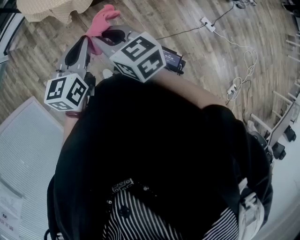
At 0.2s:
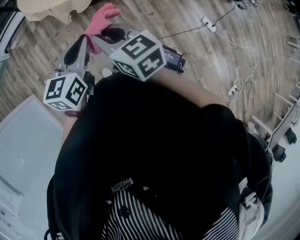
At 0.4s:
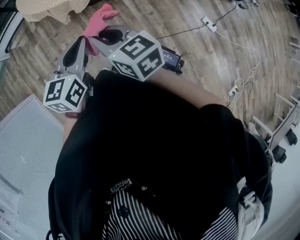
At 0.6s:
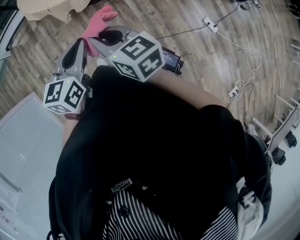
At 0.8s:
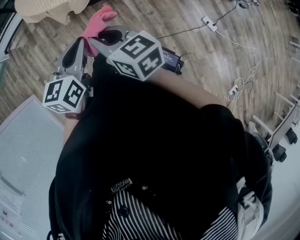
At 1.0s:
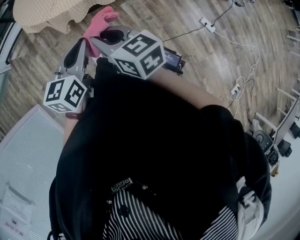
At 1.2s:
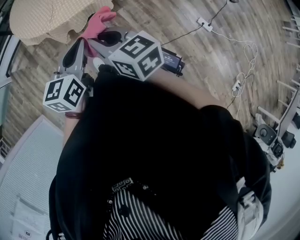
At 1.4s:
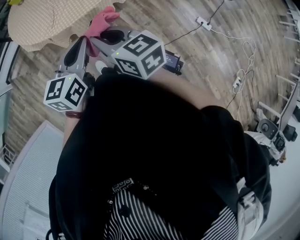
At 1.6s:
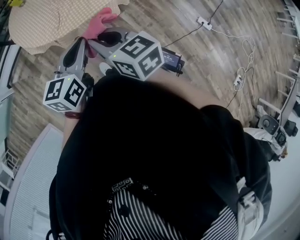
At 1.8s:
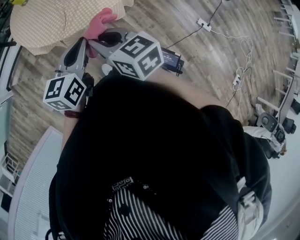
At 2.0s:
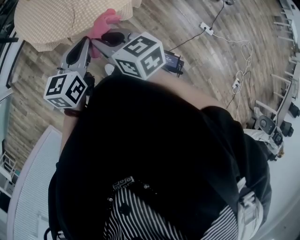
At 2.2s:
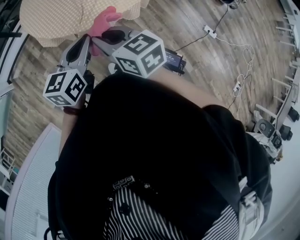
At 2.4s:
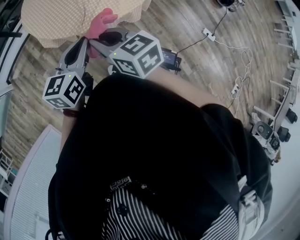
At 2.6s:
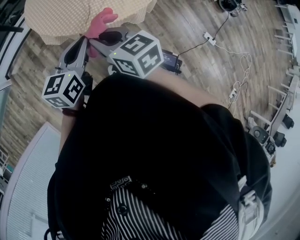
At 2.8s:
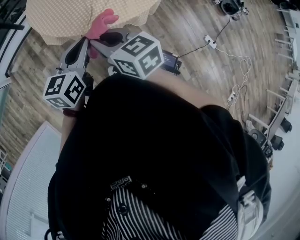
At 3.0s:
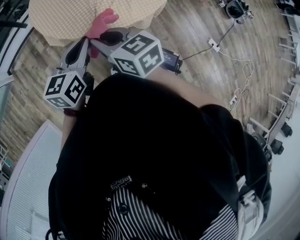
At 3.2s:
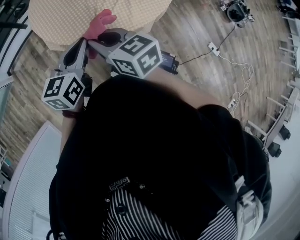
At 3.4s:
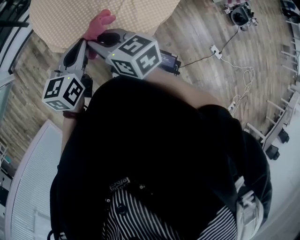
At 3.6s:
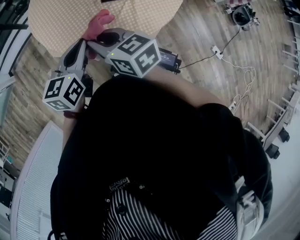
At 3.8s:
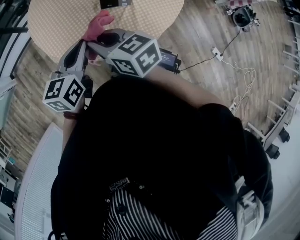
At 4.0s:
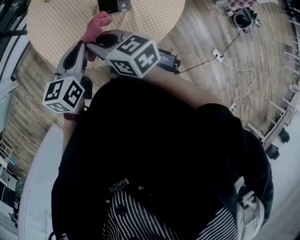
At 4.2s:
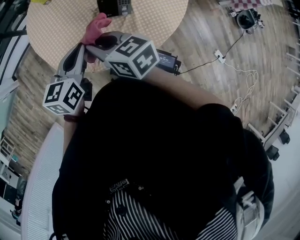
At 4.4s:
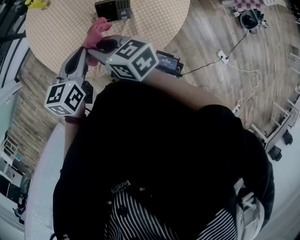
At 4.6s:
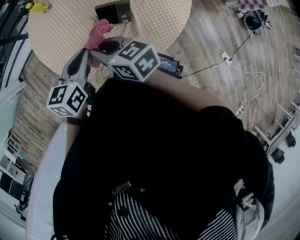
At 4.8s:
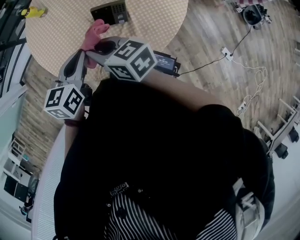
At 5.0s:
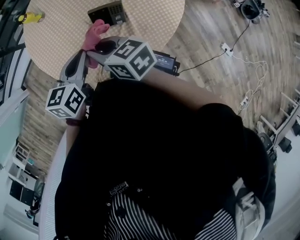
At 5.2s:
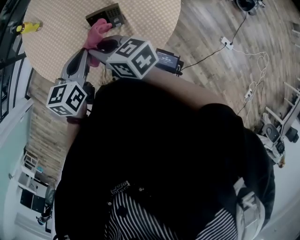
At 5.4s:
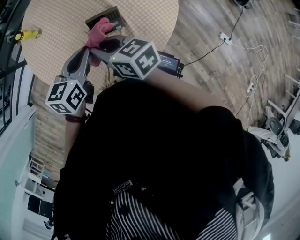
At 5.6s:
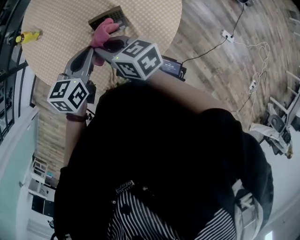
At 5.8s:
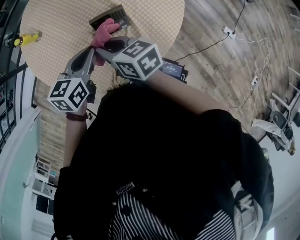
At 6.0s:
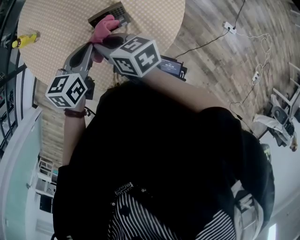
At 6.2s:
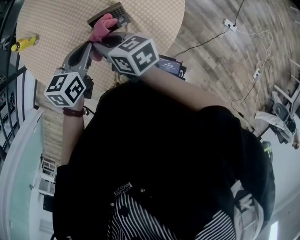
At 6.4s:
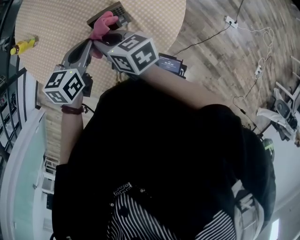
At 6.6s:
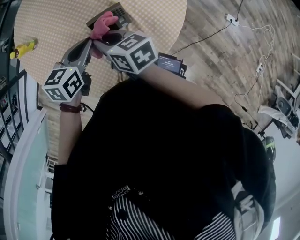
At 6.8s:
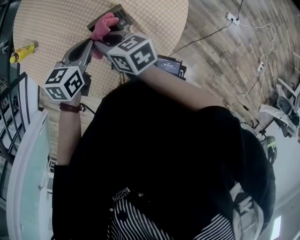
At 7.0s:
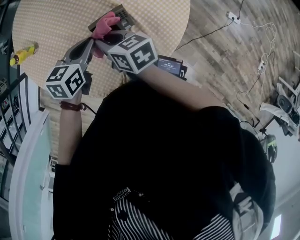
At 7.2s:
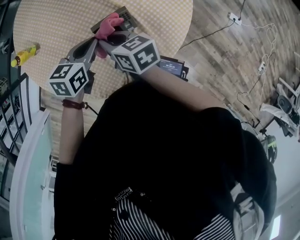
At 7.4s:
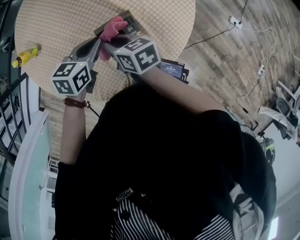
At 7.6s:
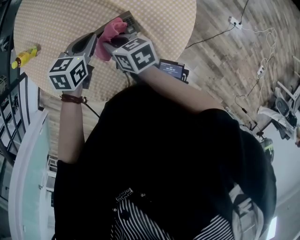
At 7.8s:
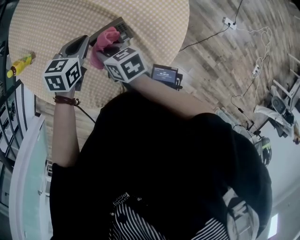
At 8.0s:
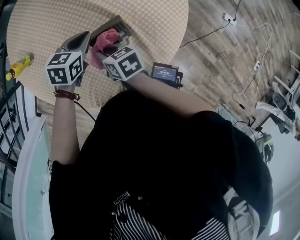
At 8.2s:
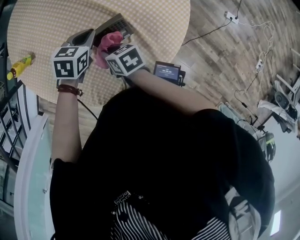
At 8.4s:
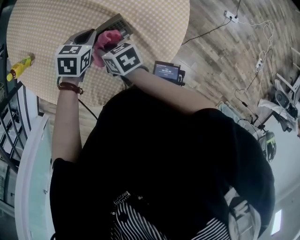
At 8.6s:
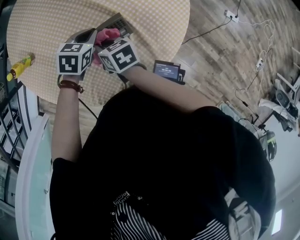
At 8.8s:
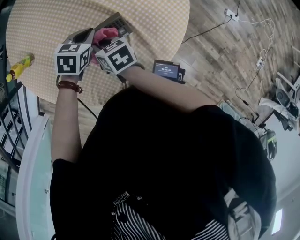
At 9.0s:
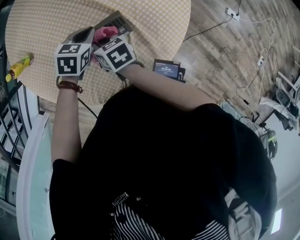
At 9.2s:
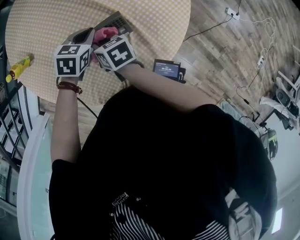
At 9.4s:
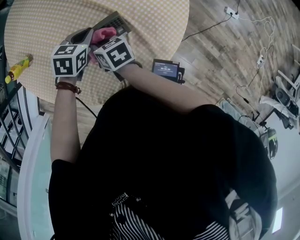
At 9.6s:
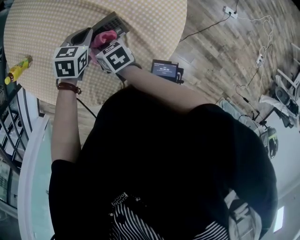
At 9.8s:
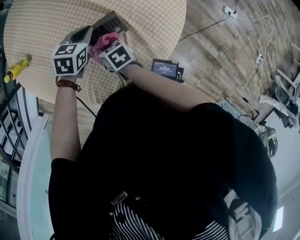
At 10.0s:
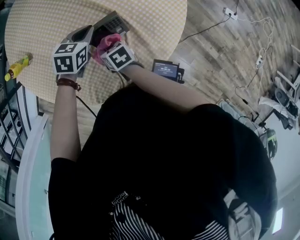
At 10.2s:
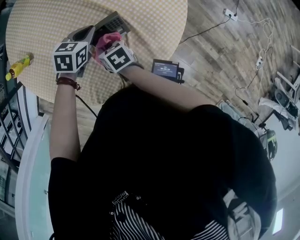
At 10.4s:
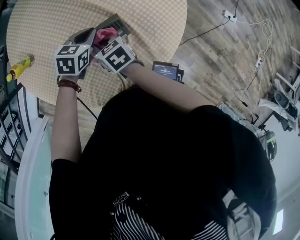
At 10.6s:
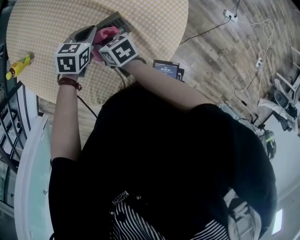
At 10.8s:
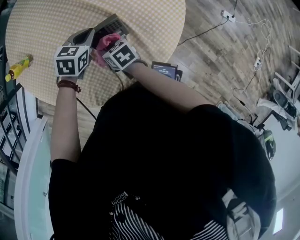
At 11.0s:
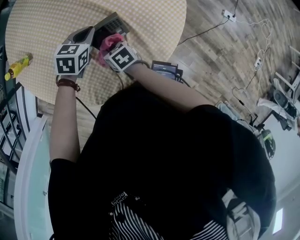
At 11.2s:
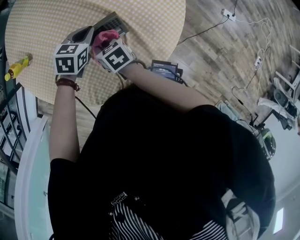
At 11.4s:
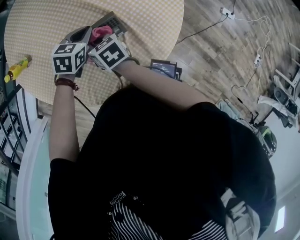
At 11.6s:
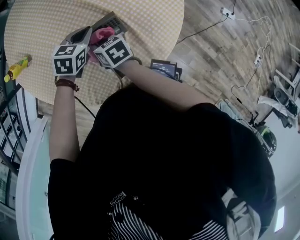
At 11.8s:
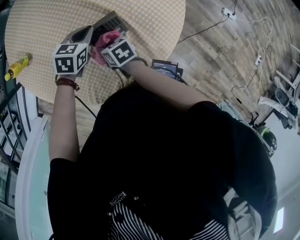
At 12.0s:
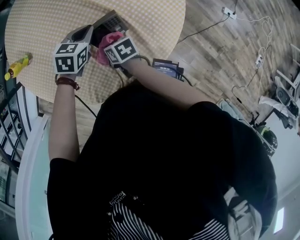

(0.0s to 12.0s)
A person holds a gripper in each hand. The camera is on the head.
0.0s - 1.6s: The two grippers go approximately 20 cm forward.
1.6s - 3.0s: The grippers both shift to the left and forward by about 20 cm.
3.0s - 4.4s: The two grippers go about 25 cm forward.
4.4s - 6.0s: The grippers both shift forward and to the right by roughly 10 cm. The left gripper changes its angle by roughly 30 degrees; the right gripper turns by roughly 30 degrees.
6.0s - 7.6s: The right gripper travels downward by about 10 cm; the left gripper heads forward and downward, covering some 10 cm.
7.6s - 9.0s: The left gripper heads downward, covering some 5 cm.
9.0s - 10.4s: The right gripper goes downward and returns, about 10 cm each way.
10.4s - 12.0s: The right gripper moves up and down over approximately 5 cm, changing direction 2 times.

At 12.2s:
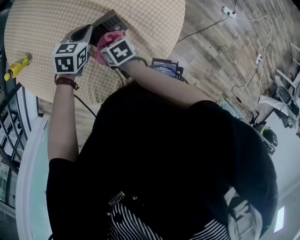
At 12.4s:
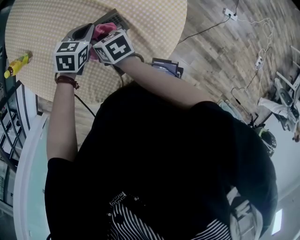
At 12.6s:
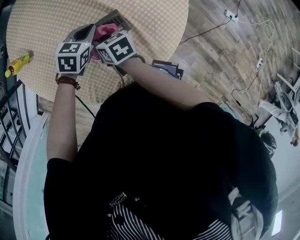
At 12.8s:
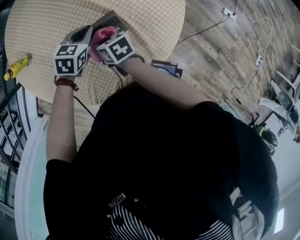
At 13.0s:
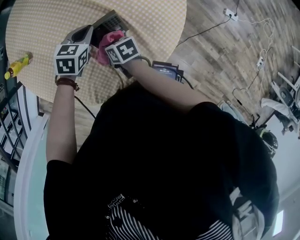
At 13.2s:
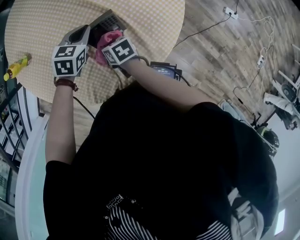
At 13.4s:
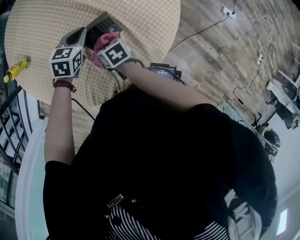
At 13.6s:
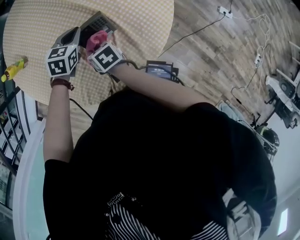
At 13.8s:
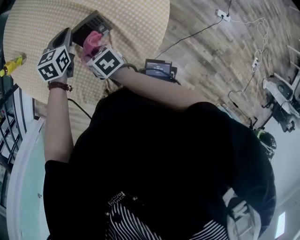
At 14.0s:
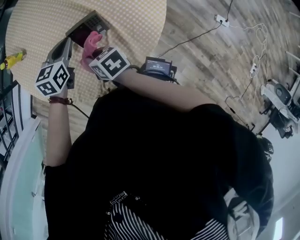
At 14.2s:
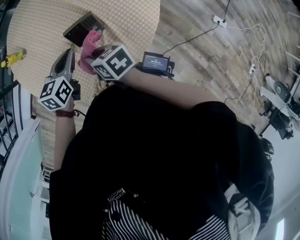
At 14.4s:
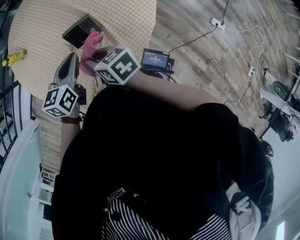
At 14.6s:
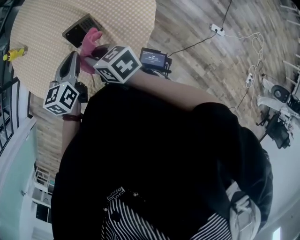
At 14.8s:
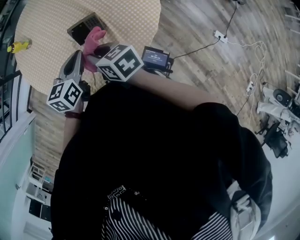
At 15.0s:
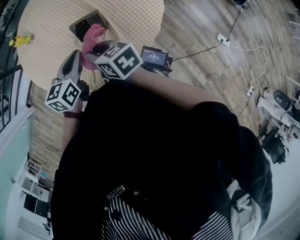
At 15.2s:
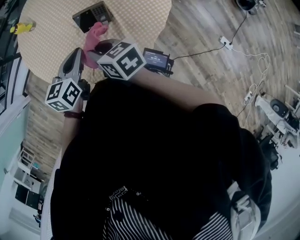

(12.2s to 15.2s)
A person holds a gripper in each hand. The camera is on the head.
12.2s - 13.8s: The right gripper goes approximately 5 cm upward.
13.8s - 15.2s: The right gripper is displaced upward and backward by about 15 cm, and changes its angle by roughly 20 degrees; the left gripper shifts some 20 cm backward and upward, and changes its angle by some 30 degrees.

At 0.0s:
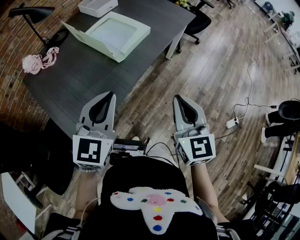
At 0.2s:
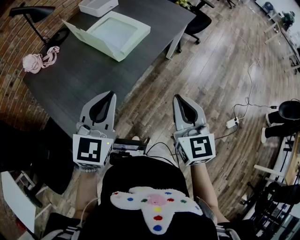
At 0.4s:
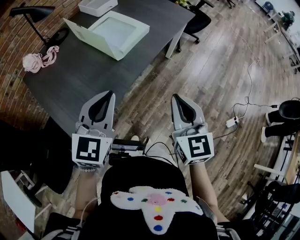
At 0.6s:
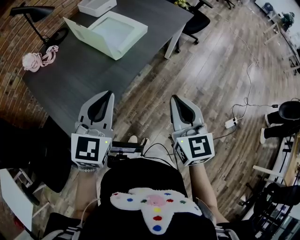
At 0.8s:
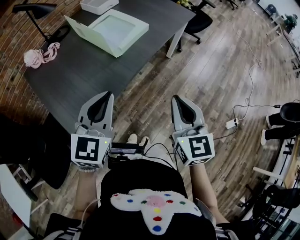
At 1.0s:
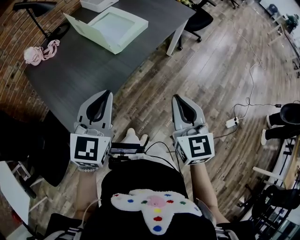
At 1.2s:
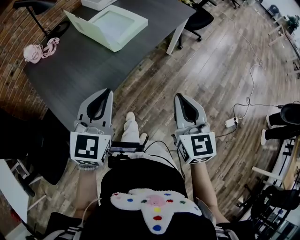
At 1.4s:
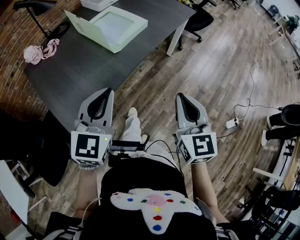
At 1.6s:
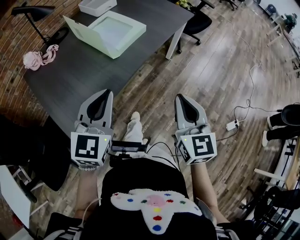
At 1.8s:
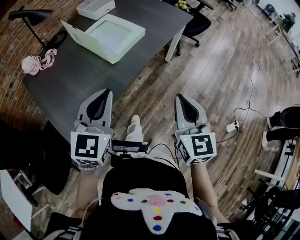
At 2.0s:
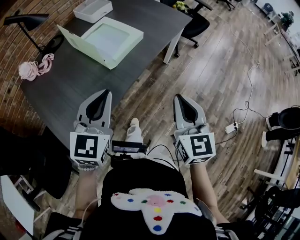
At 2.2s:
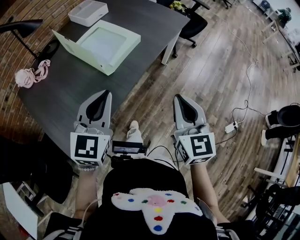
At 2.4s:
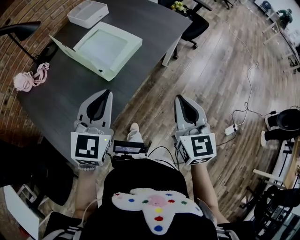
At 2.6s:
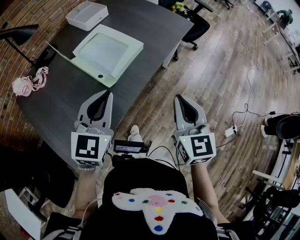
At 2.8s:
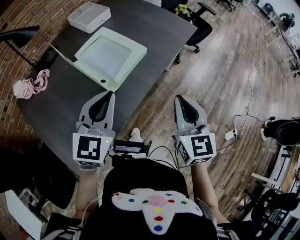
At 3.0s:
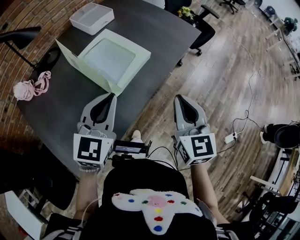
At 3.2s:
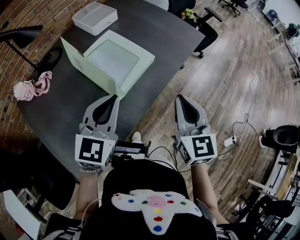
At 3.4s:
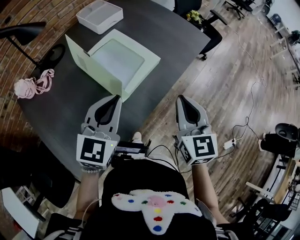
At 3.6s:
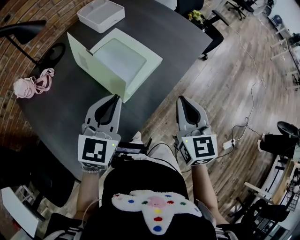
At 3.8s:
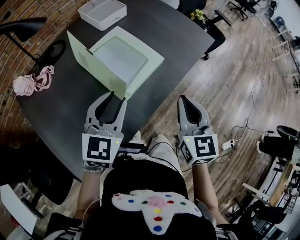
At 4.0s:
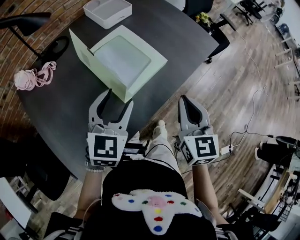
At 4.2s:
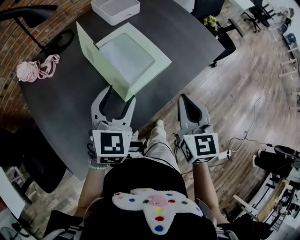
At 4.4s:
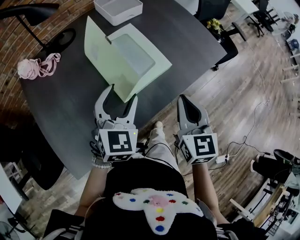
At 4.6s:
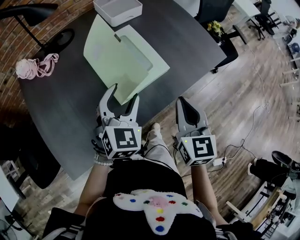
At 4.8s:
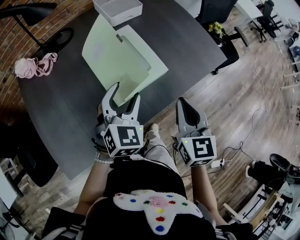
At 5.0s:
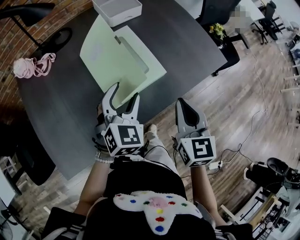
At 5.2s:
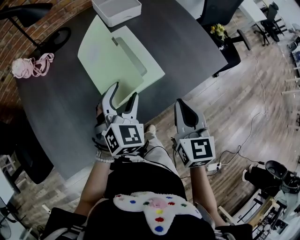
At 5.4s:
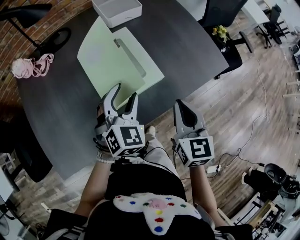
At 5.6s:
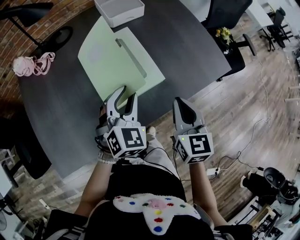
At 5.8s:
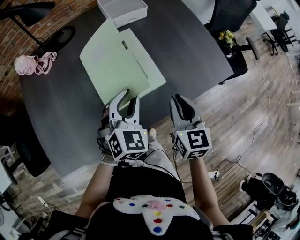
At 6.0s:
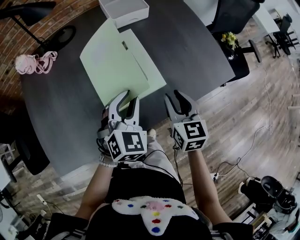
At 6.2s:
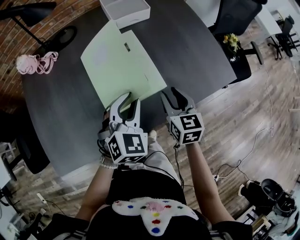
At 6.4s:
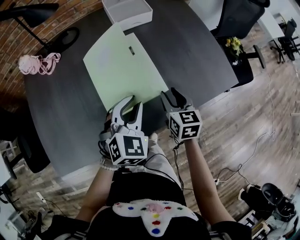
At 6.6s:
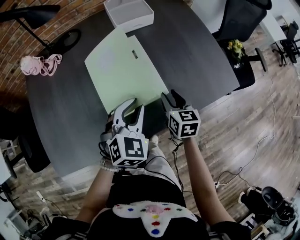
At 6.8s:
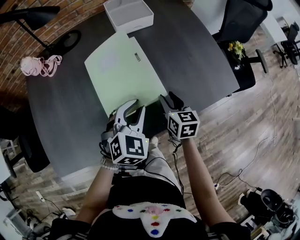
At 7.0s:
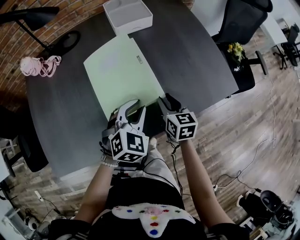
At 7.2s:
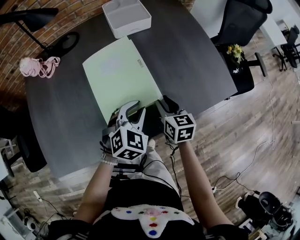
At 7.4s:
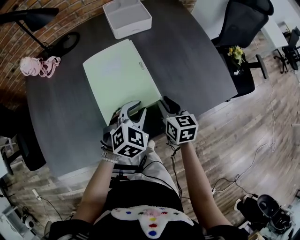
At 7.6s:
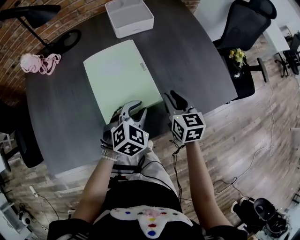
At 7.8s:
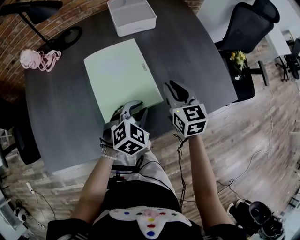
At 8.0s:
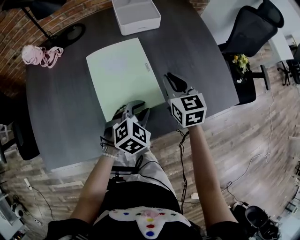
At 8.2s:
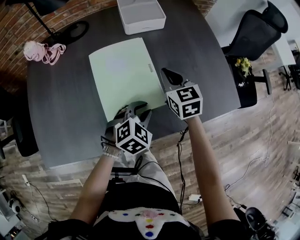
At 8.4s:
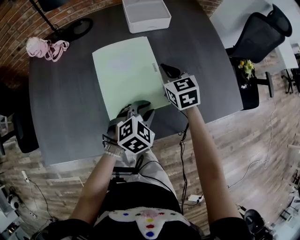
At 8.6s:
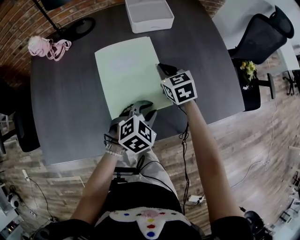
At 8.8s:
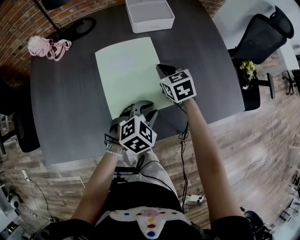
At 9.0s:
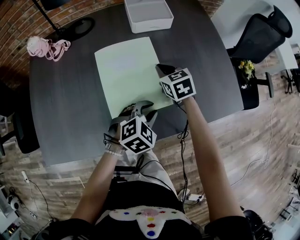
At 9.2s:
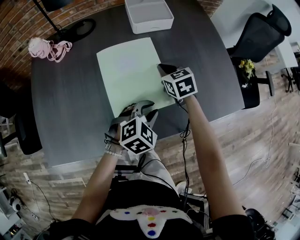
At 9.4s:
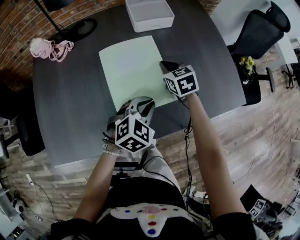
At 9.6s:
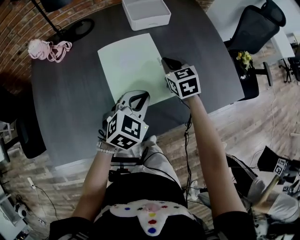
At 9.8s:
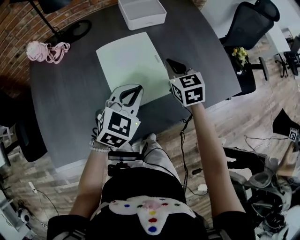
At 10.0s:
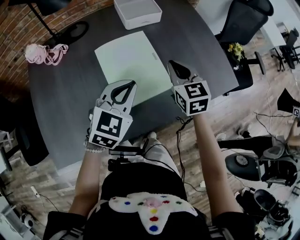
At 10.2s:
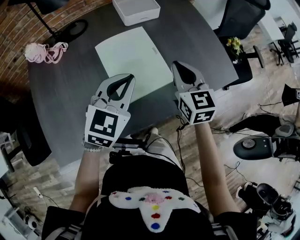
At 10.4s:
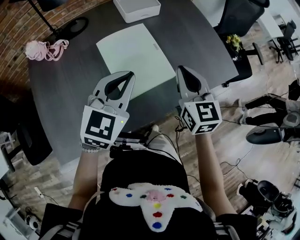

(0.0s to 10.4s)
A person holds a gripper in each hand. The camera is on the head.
0.0s - 1.4s: The right gripper moves to the right, about 5 cm; the left gripper ends up approximately 5 cm from where it was.
1.4s - 3.0s: The two grippers go about 25 cm forward.
3.0s - 4.4s: The right gripper shifts some 10 cm forward. The left gripper heads forward and downward, covering roughly 10 cm, rotates some 20 degrees, and opens its fingers.
4.4s - 6.0s: The right gripper goes roughly 15 cm forward, downward and to the right, and opens up. The left gripper shifts approximately 15 cm to the right, forward and downward, and closes its fingers.
6.0s - 7.4s: The left gripper goes some 10 cm downward and to the right, while the right gripper travels downward and forward by approximately 10 cm.
7.4s - 9.0s: The right gripper goes some 15 cm forward and to the left, turns by approximately 30 degrees, and closes up.
9.0s - 10.4s: The left gripper goes roughly 25 cm upward and to the left, tips its fingers upward by roughly 30 degrees, and closes up. The right gripper moves backward and upward, about 25 cm, and changes its angle by about 30 degrees.
